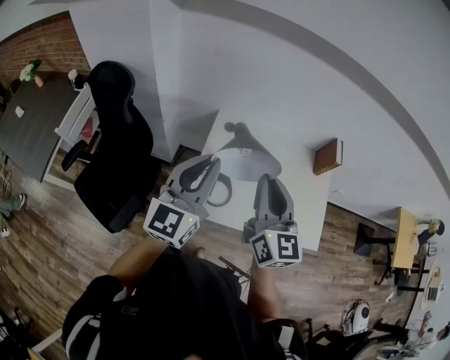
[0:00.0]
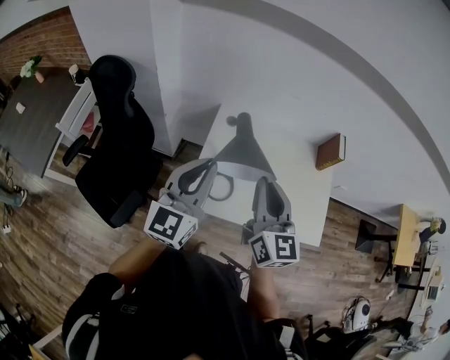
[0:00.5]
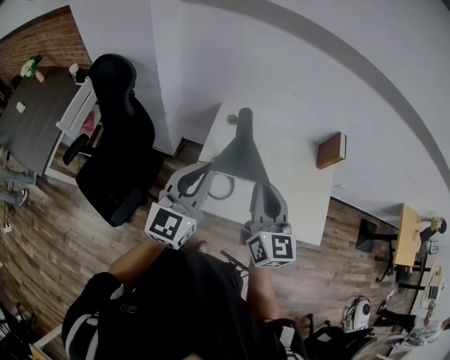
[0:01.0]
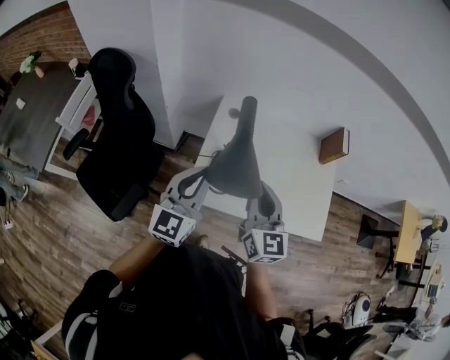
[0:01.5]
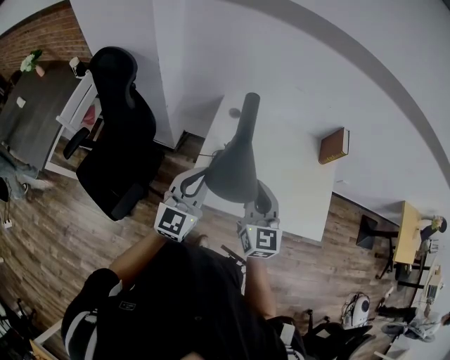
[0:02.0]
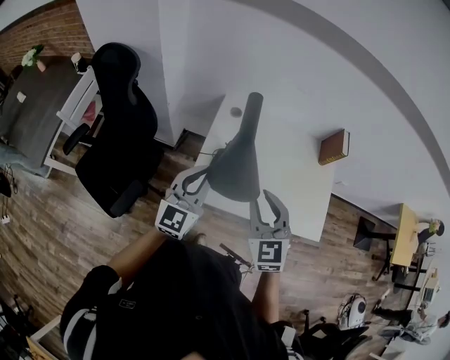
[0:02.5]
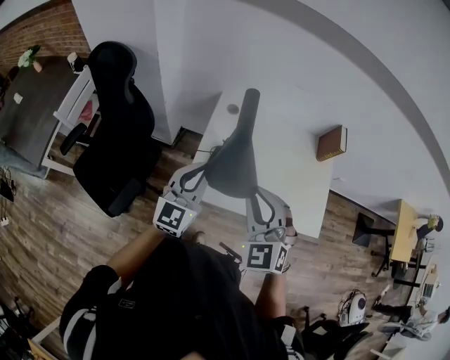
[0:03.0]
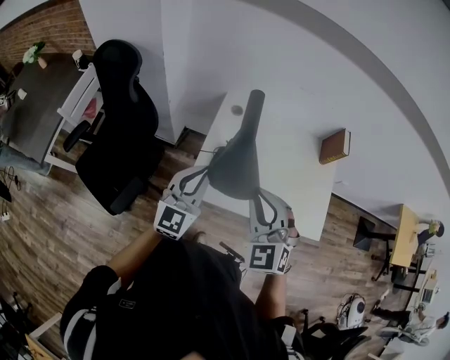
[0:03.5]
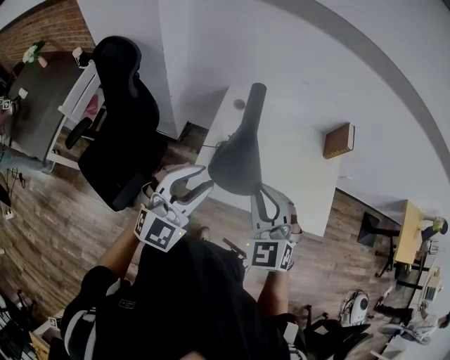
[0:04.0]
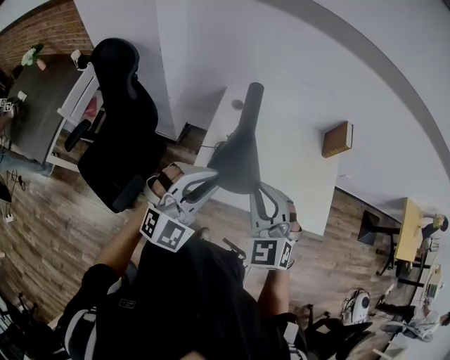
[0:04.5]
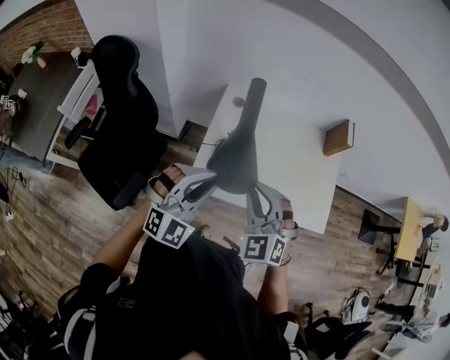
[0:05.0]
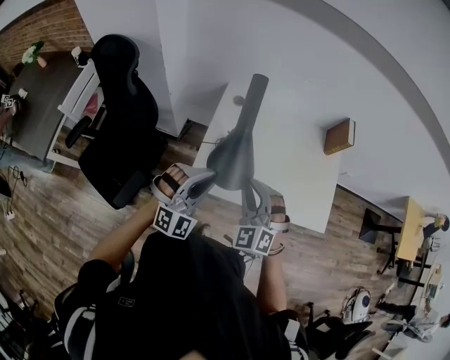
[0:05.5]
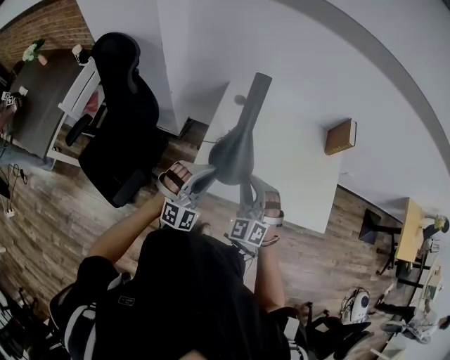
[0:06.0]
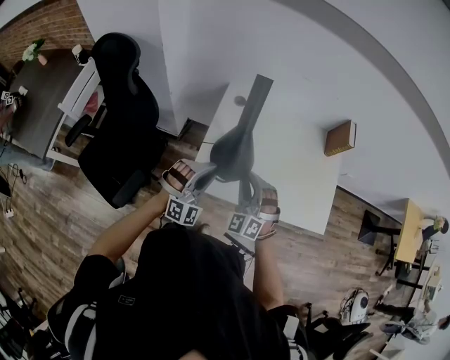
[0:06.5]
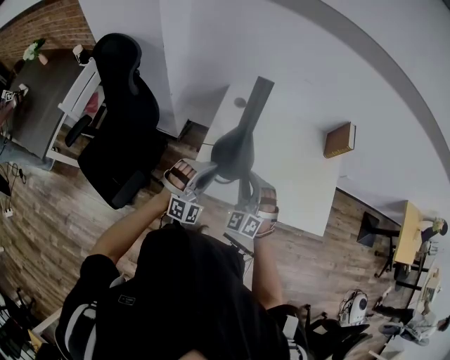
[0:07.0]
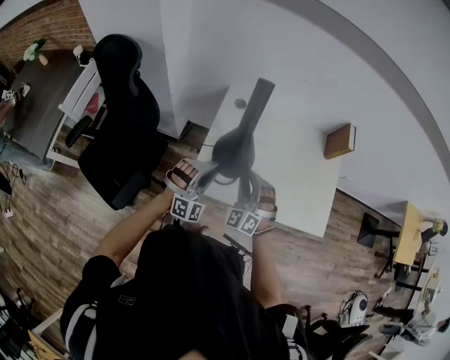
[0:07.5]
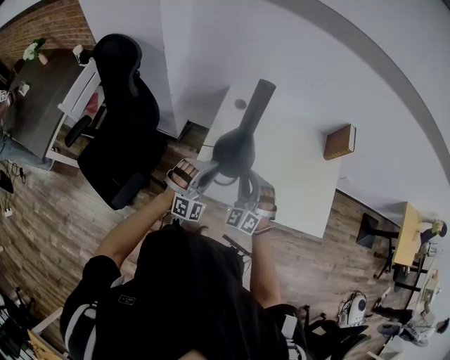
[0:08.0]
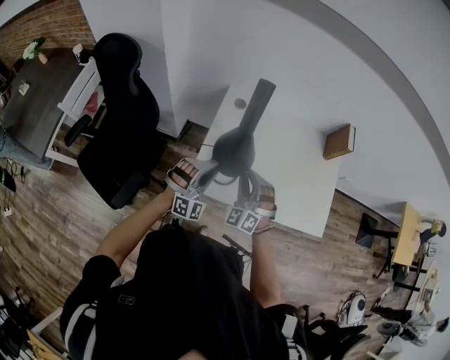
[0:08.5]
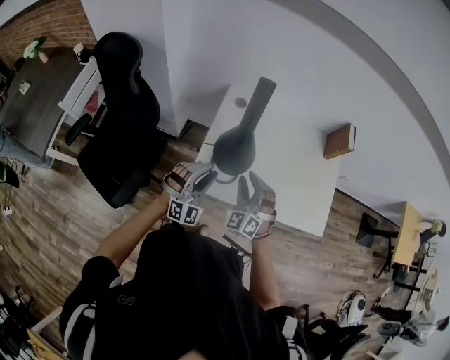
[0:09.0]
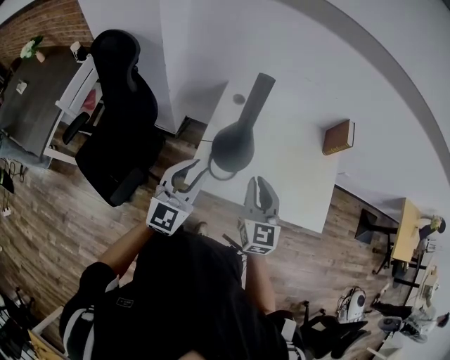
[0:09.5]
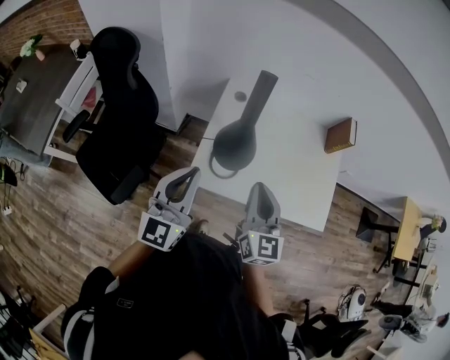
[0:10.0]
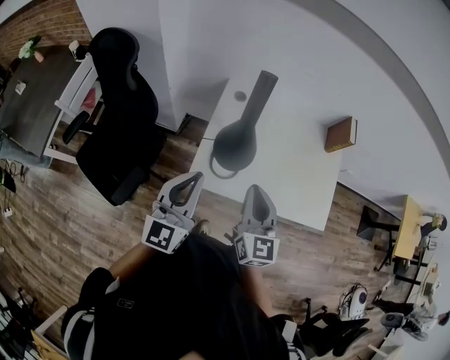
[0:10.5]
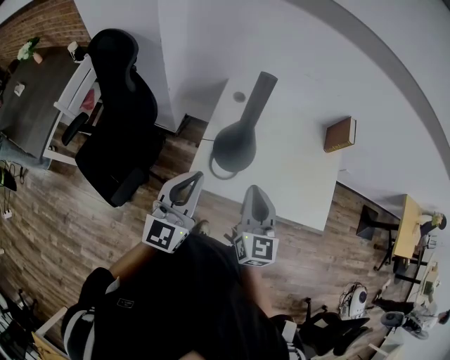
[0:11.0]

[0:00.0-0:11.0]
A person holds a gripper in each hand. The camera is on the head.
0:00.0 to 0:02.0: Both grippers move downward, roughly 10 cm.
0:02.0 to 0:03.5: The right gripper ends up approximately 5 cm from where it was, and rotates around the line of its fingers by some 40 degrees, counterclockwise from behind.
0:03.5 to 0:05.5: The left gripper moves approximately 5 cm, and rolls clockwise, seen from behind, by roughly 50 degrees; the right gripper moves downward, roughly 10 cm.
0:05.5 to 0:07.5: The grippers both shift downward and forward by about 10 cm.
0:07.5 to 0:09.0: There are only small adjustments of the grippers.
0:09.0 to 0:11.0: The left gripper goes approximately 15 cm upward, rolls counterclockwise, seen from behind, by approximately 60 degrees, and closes; the right gripper travels upward and backward by some 15 cm, rotates around the line of its fingers by about 60 degrees, clockwise from behind, and closes its fingers.

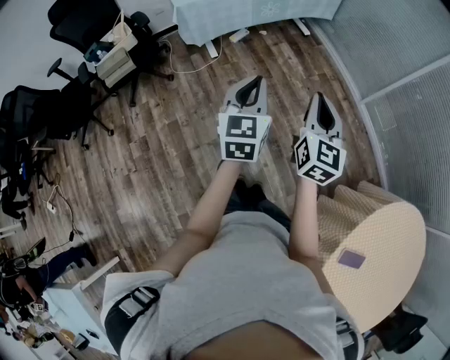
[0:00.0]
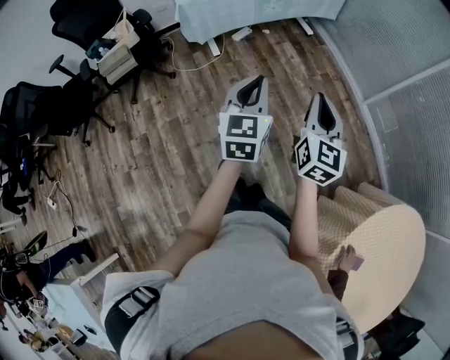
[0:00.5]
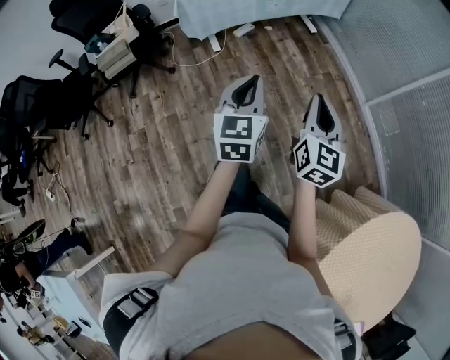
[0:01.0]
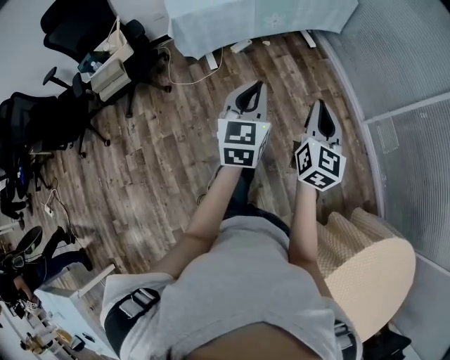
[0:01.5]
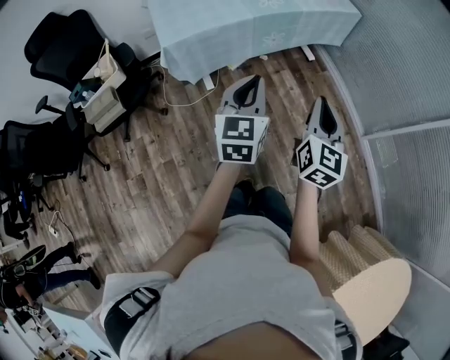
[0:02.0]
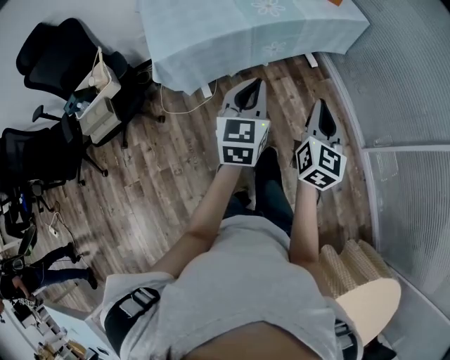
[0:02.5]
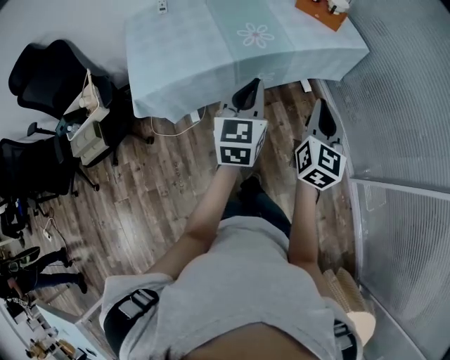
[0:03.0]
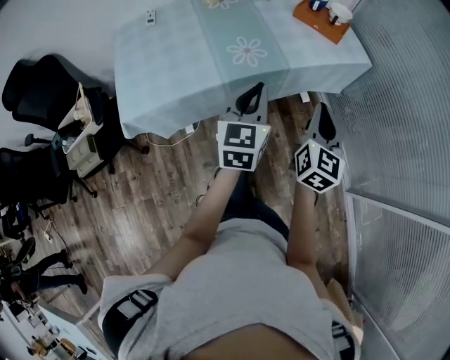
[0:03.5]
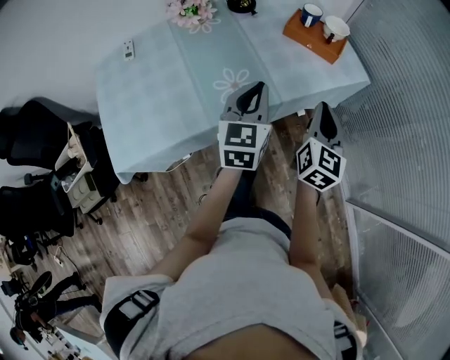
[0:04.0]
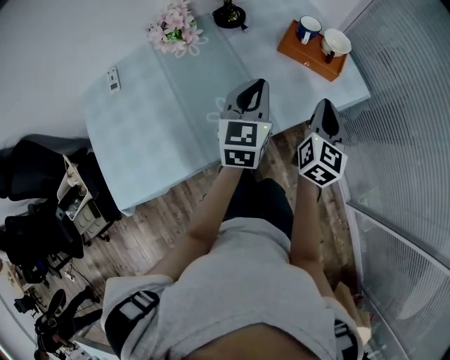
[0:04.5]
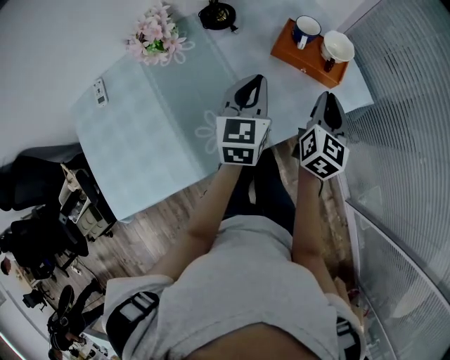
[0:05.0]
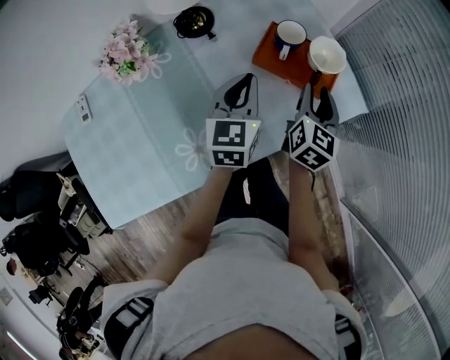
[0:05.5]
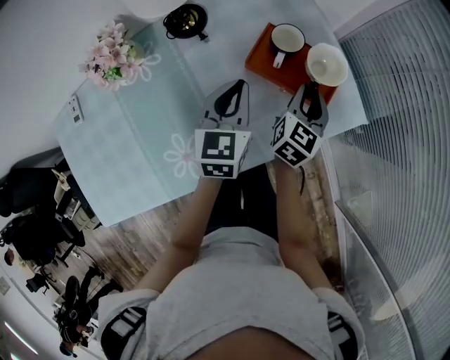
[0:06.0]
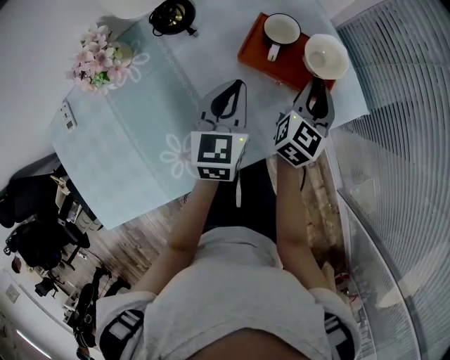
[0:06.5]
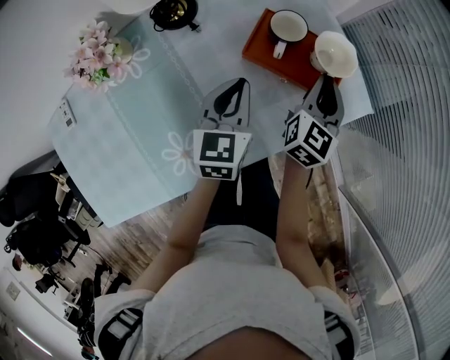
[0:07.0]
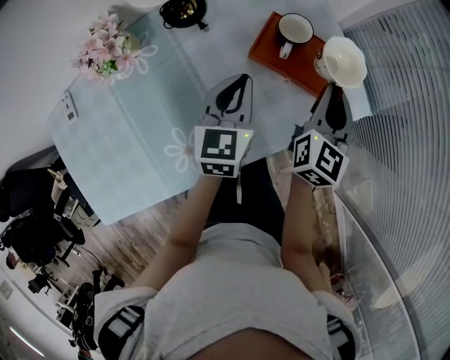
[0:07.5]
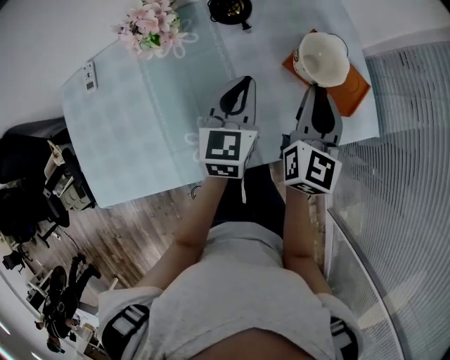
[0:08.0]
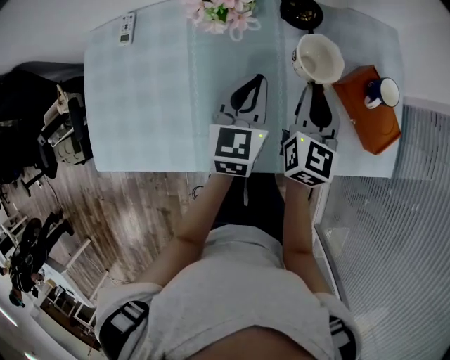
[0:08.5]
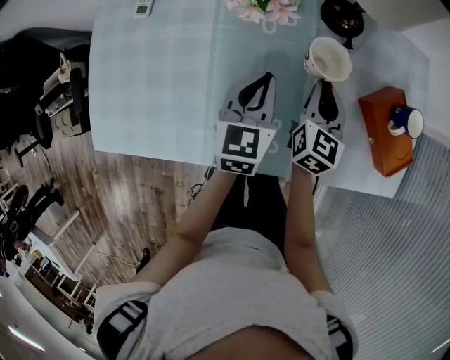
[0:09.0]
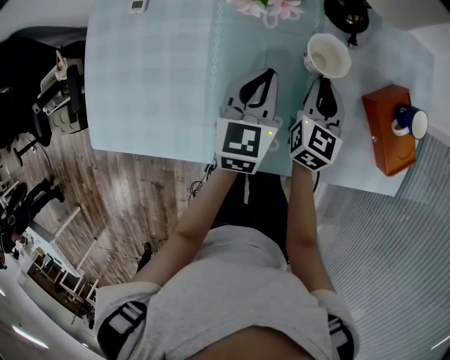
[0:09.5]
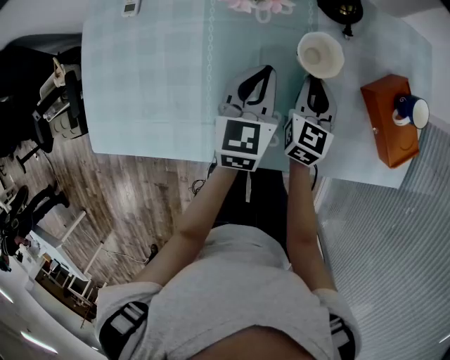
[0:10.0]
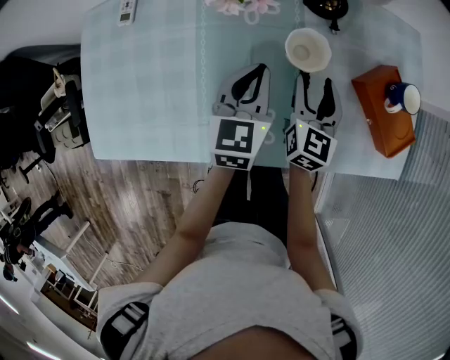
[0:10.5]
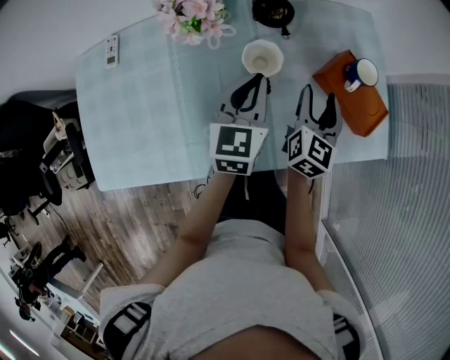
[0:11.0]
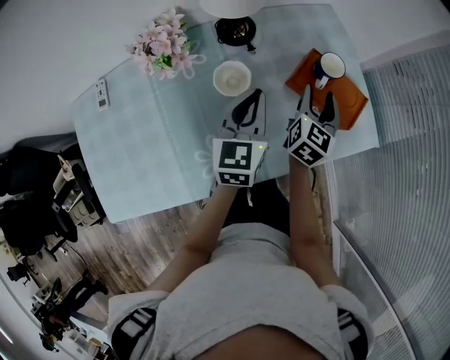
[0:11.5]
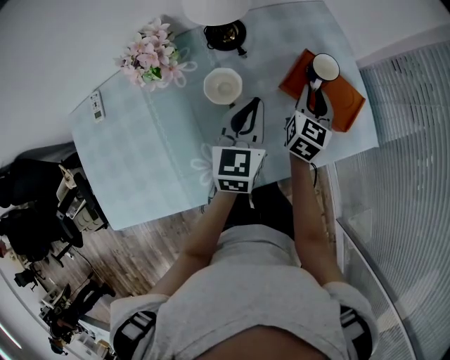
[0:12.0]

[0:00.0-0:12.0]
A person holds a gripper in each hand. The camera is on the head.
0:00.0 to 0:02.0: Both grippers travel together forward, about 35 cm.
0:02.0 to 0:04.0: Both grippers are carried forward, roughly 60 cm.
0:04.0 to 0:06.0: Both grippers move forward, some 35 cm. The right gripper opens its fingers.
0:06.0 to 0:08.0: The right gripper goes roughly 15 cm upward, to the left and backward, and turns by roughly 20 degrees. The left gripper shifts some 10 cm to the left and backward.
0:08.0 to 0:10.0: The left gripper goes roughly 15 cm to the left and downward, while the right gripper heads to the left and downward, covering about 25 cm, and changes its angle by about 30 degrees.
0:10.0 to 0:12.0: The right gripper ends up roughly 25 cm from where it was, turns by approximately 30 degrees, and opens and closes again; the left gripper ends up about 20 cm from where it was, and changes its angle by about 20 degrees.

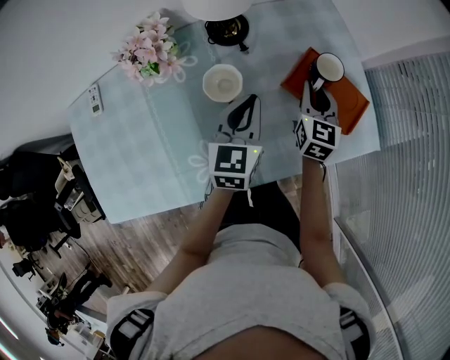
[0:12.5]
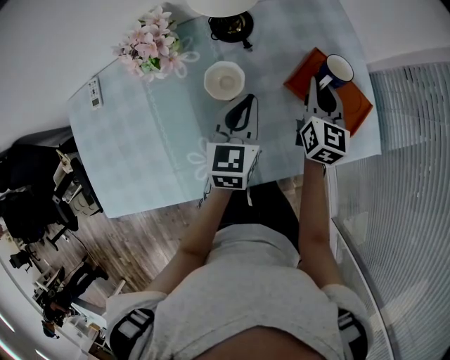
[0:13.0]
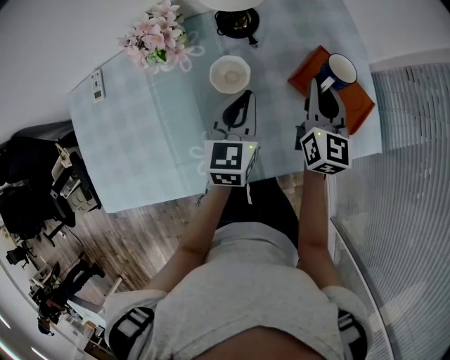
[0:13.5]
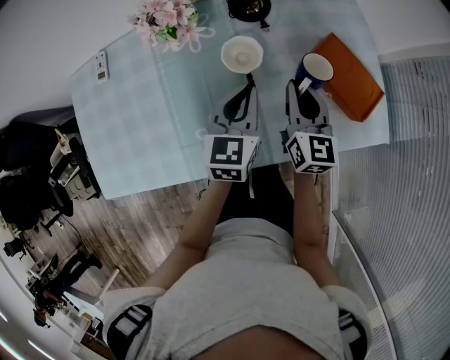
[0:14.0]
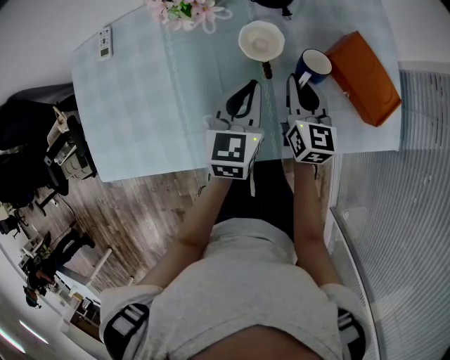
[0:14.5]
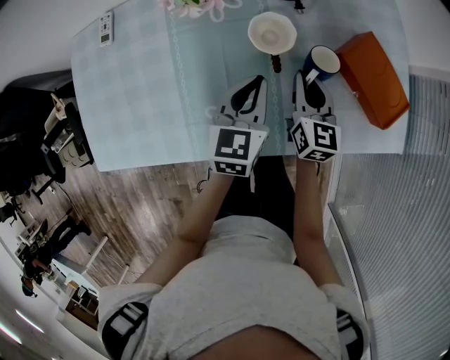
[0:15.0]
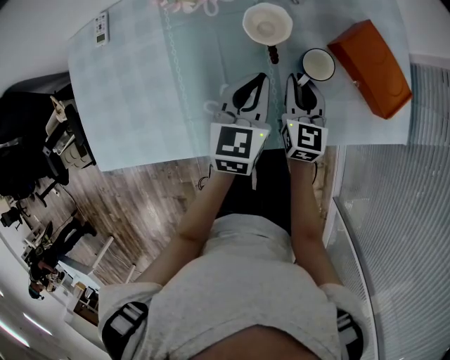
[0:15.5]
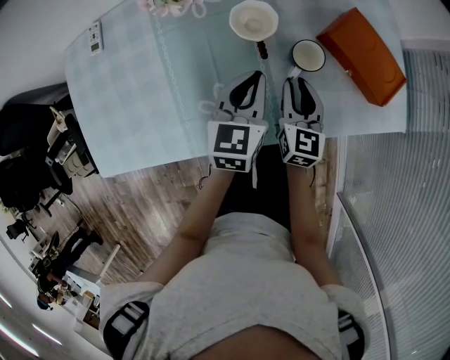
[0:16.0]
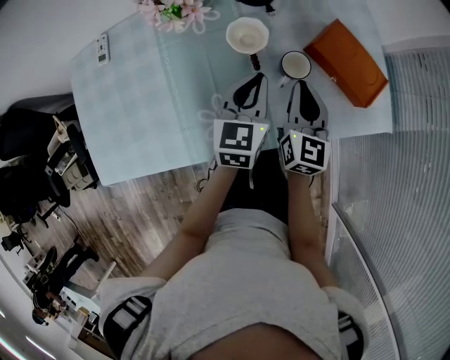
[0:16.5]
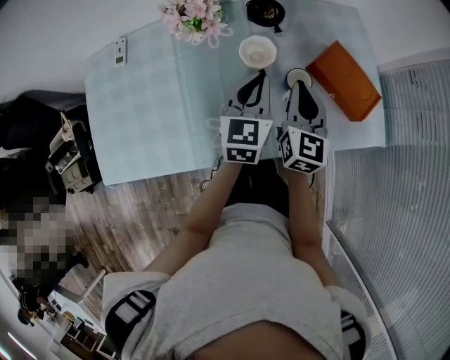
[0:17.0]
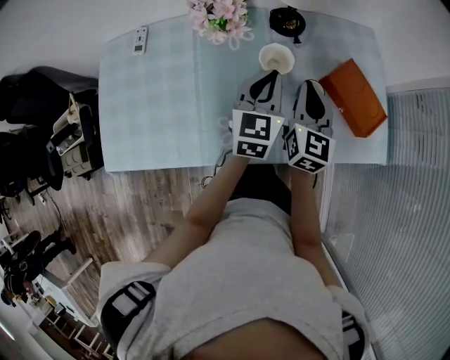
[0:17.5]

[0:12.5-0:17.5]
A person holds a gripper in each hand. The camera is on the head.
0:12.5 to 0:15.0: The right gripper travels to the left and backward by some 15 cm, and changes its angle by approximately 20 degrees, while the left gripper shifts some 10 cm to the left and backward.
0:15.0 to 0:17.5: The grippers both shift upward by approximately 10 cm.
